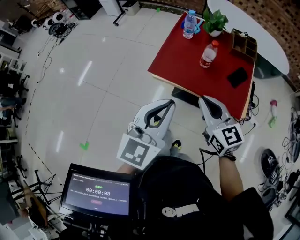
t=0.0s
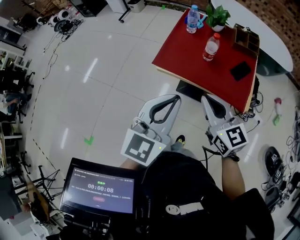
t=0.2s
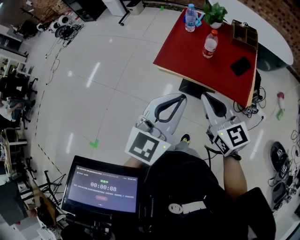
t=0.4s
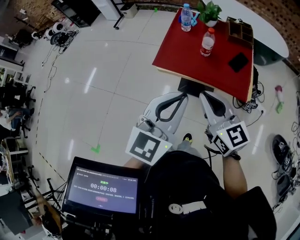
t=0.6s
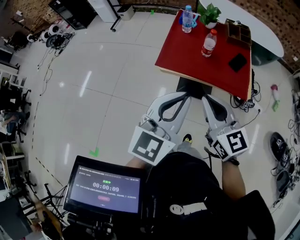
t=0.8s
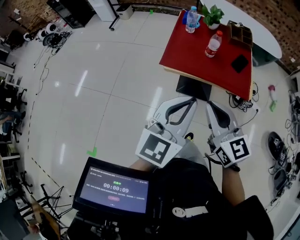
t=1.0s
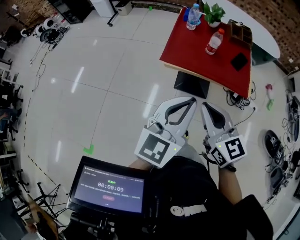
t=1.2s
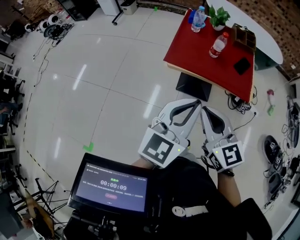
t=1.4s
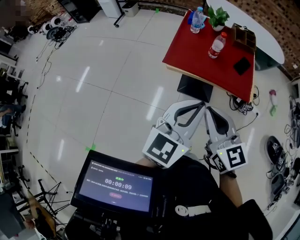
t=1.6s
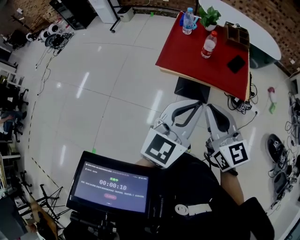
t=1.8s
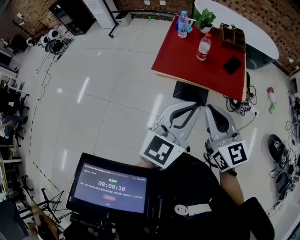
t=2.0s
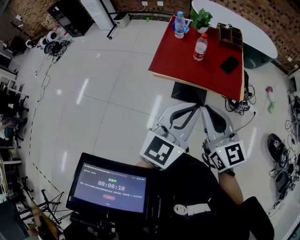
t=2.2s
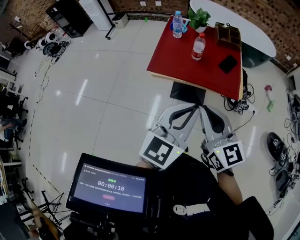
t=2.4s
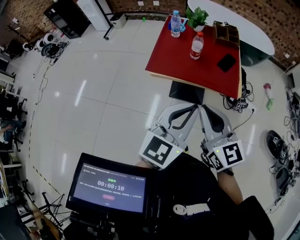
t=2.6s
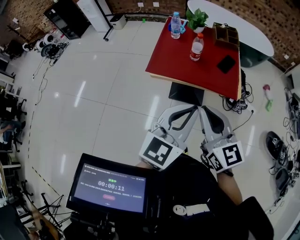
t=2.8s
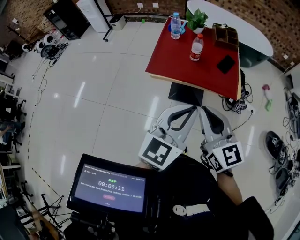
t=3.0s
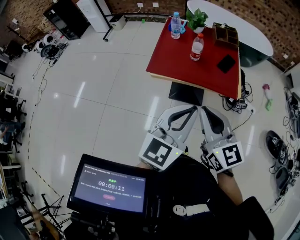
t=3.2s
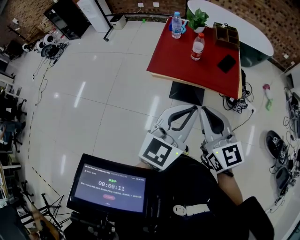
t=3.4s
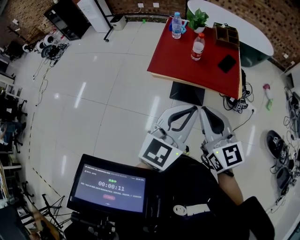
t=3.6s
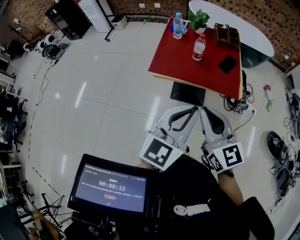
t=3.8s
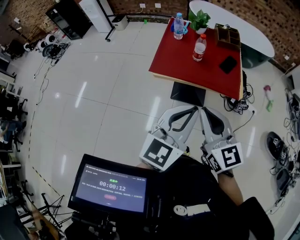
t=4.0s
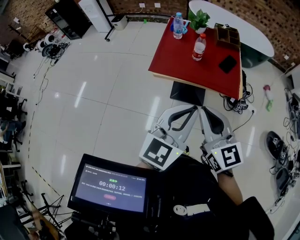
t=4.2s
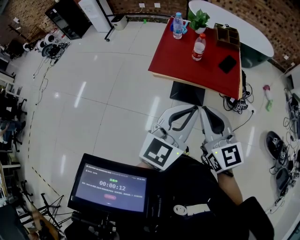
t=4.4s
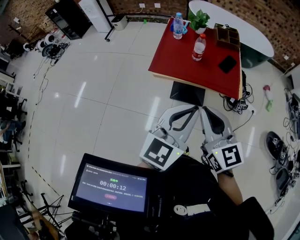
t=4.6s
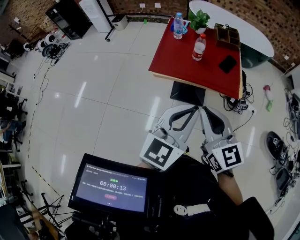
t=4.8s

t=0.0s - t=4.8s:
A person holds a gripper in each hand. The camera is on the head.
t=0.0s - t=1.6s: The left gripper goes roughly 10 cm backward. Meanwhile the right gripper shifts about 20 cm backward, to the left and upward.
t=1.6s - t=3.2s: Both grippers travel together to the right, some 5 cm.
t=3.2s - t=4.8s: Both grippers stay put.

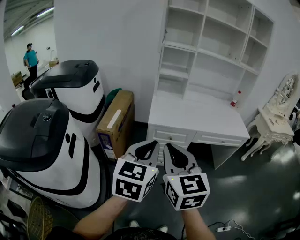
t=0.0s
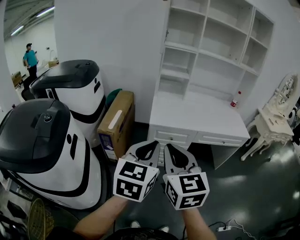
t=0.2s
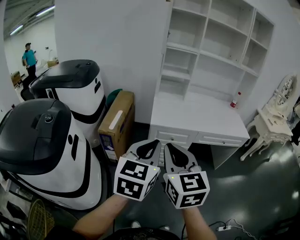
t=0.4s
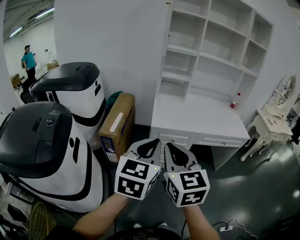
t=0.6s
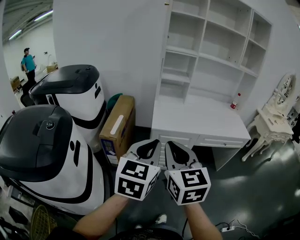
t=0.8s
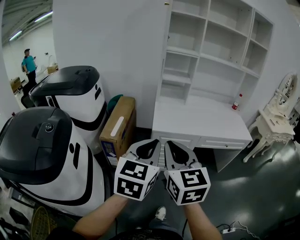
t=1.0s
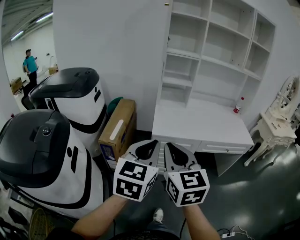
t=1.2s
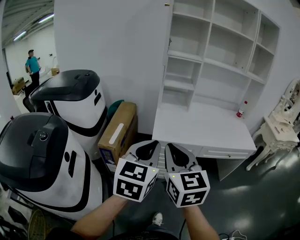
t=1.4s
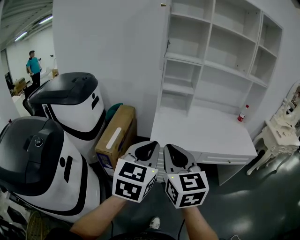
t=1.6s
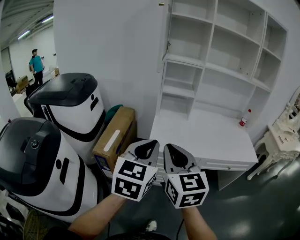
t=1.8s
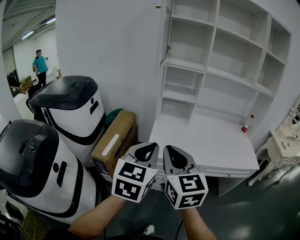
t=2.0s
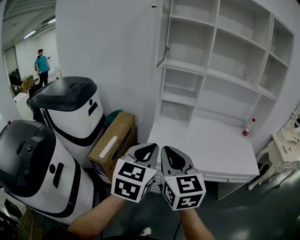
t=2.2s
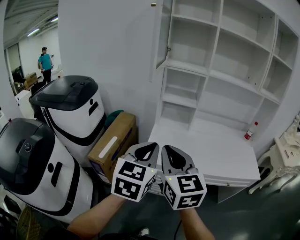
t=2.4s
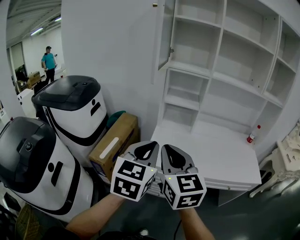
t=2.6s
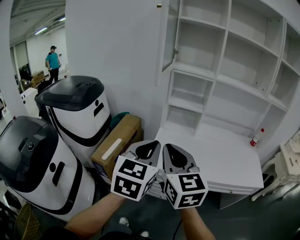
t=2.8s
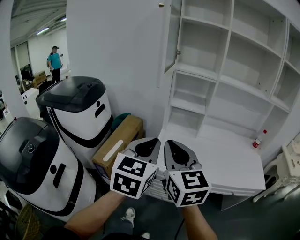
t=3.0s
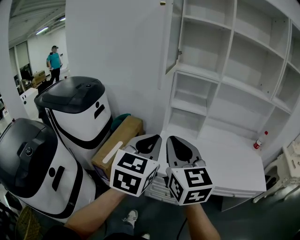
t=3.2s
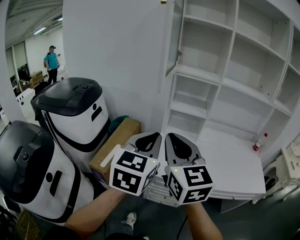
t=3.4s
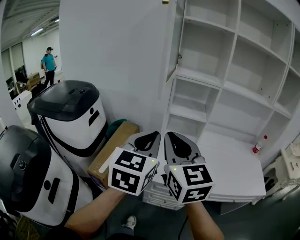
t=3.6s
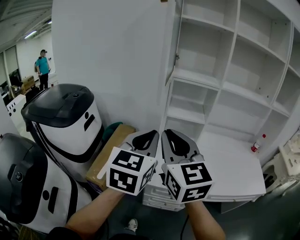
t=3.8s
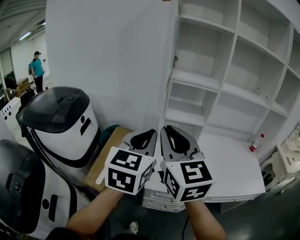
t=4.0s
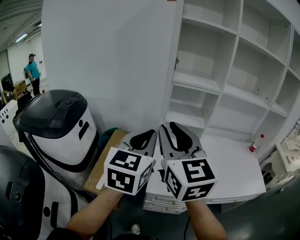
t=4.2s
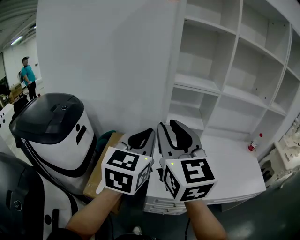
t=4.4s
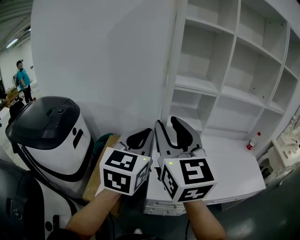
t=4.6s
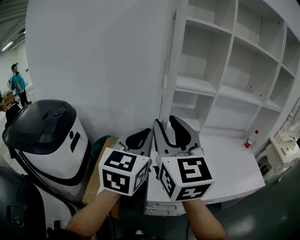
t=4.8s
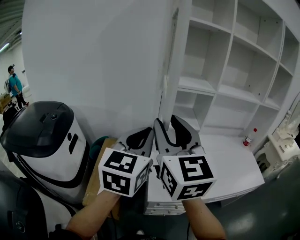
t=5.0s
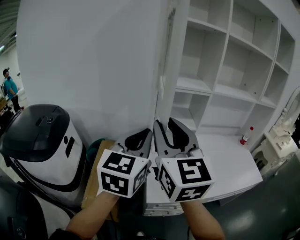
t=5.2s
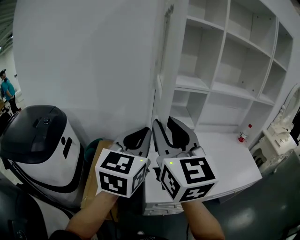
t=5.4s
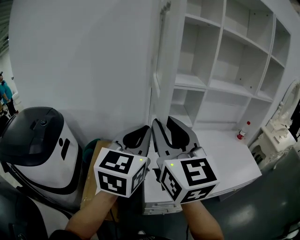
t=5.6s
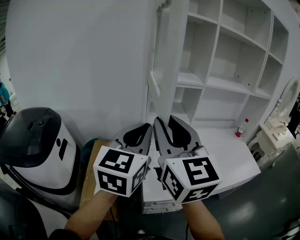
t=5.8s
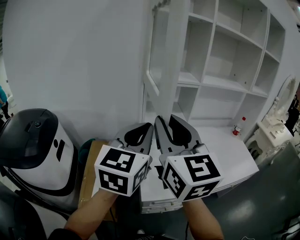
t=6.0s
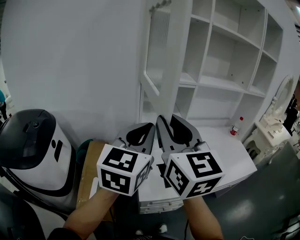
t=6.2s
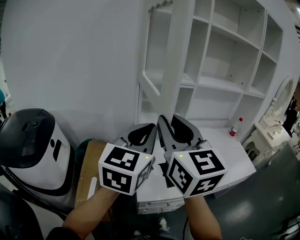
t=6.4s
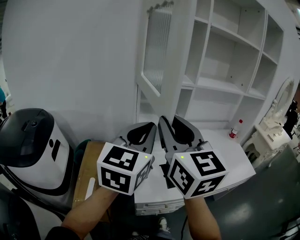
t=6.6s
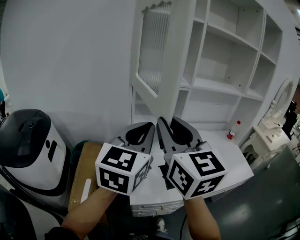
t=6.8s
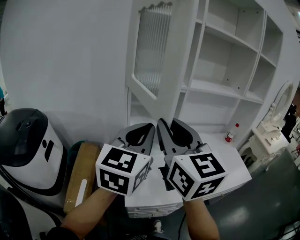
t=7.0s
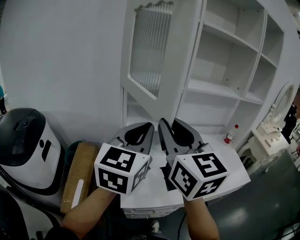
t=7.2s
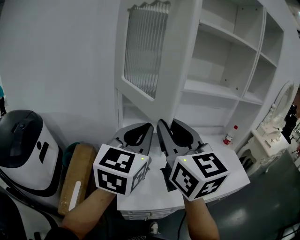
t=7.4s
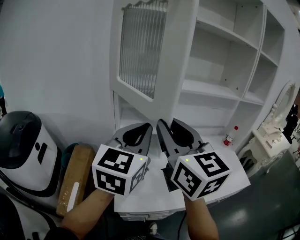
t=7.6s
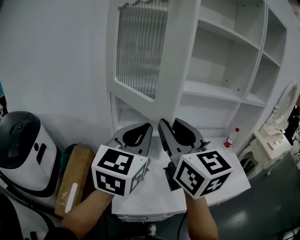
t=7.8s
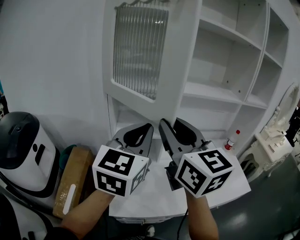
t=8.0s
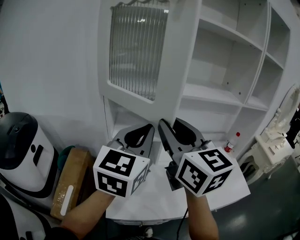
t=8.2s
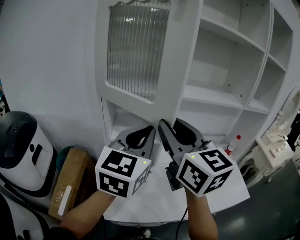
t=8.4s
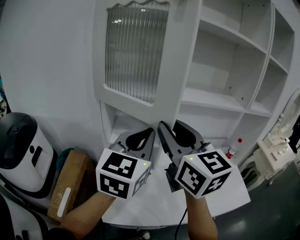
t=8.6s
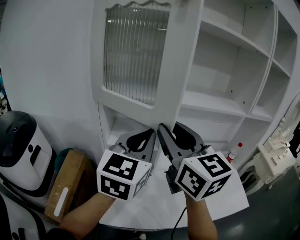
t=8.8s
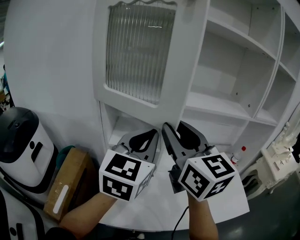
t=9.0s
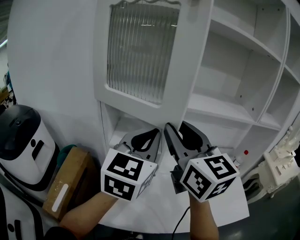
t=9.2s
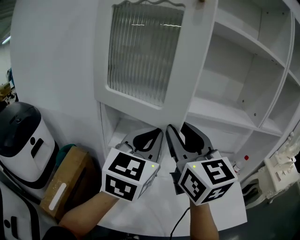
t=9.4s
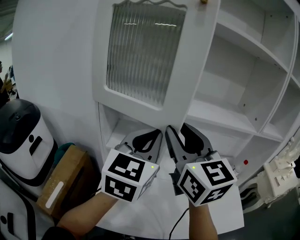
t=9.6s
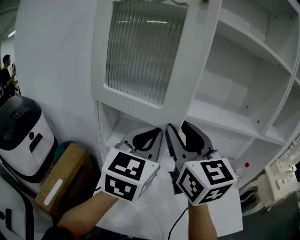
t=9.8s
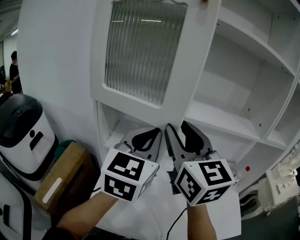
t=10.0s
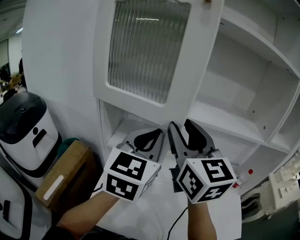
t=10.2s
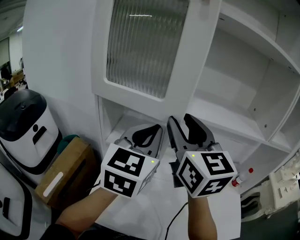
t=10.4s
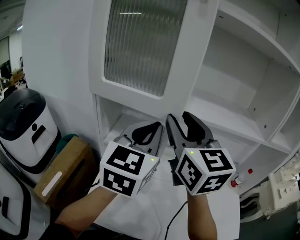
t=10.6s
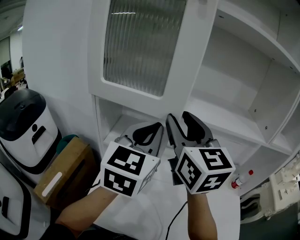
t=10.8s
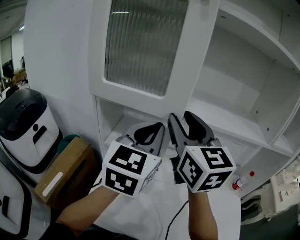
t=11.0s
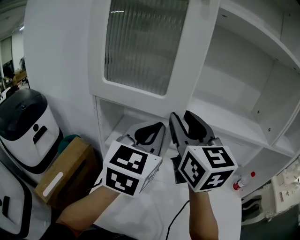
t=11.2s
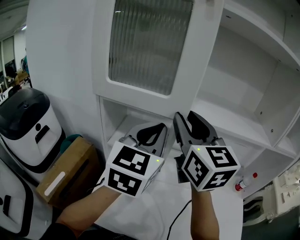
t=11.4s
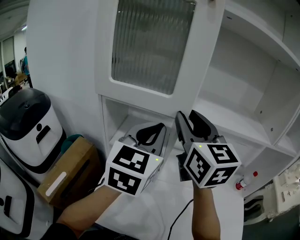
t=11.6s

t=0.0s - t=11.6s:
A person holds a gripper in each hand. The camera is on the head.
t=0.0s - t=1.4s: The grippers both shift forward by some 10 cm.
t=1.4s - t=2.8s: Both grippers travel together forward and to the right, roughly 20 cm.
t=2.8s - t=4.4s: The left gripper shifts roughly 20 cm forward. Meanwhile the right gripper shifts about 20 cm forward and upward.
t=4.4s - t=5.8s: The left gripper moves about 5 cm.
t=5.8s - t=7.2s: The two grippers go roughly 10 cm to the right.
t=7.2s - t=8.8s: The two grippers go about 15 cm forward and to the right.
t=8.8s - t=10.2s: Both grippers travel together forward, about 10 cm.
t=10.2s - t=11.6s: The grippers stay close to where they were, moving slightly.

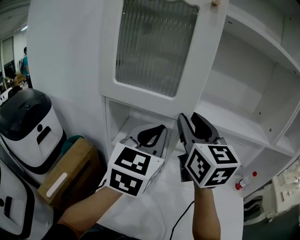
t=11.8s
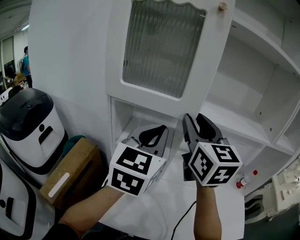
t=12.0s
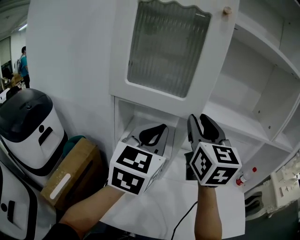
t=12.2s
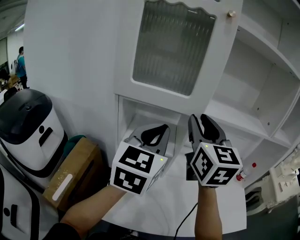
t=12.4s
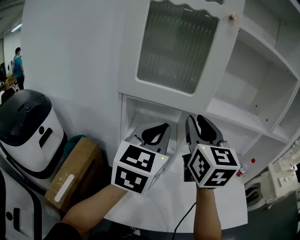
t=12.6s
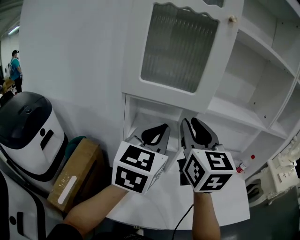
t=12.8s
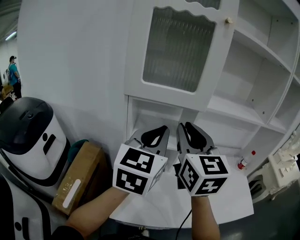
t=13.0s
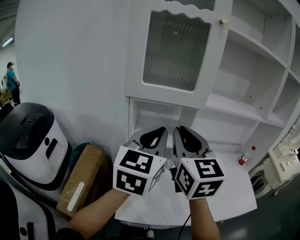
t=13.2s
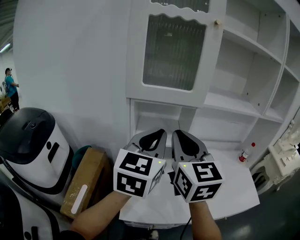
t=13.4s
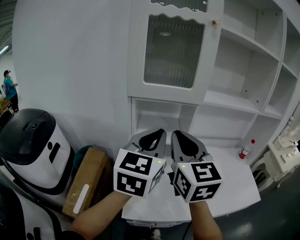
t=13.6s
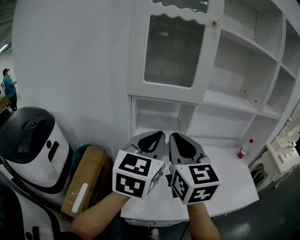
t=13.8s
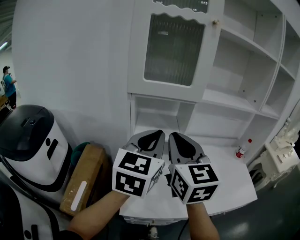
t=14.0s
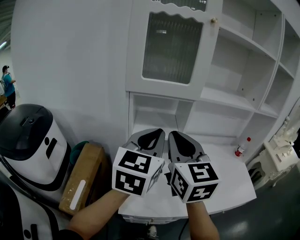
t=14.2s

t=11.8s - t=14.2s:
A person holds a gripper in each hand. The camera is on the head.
t=11.8s - t=13.0s: The left gripper travels to the left and backward by some 10 cm; the right gripper moves backward and to the left, approximately 15 cm.
t=13.0s - t=14.2s: The grippers both shift backward by some 5 cm.

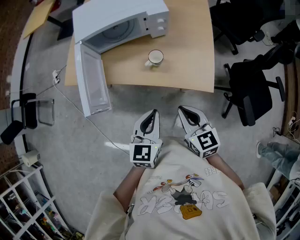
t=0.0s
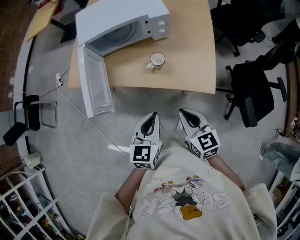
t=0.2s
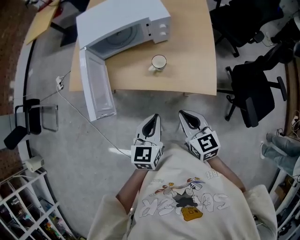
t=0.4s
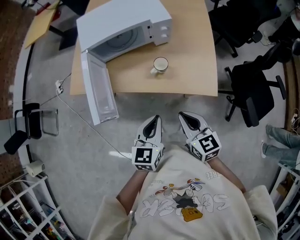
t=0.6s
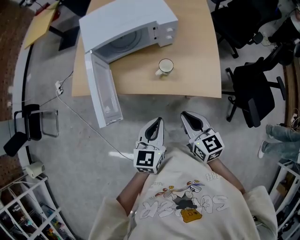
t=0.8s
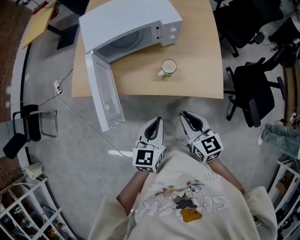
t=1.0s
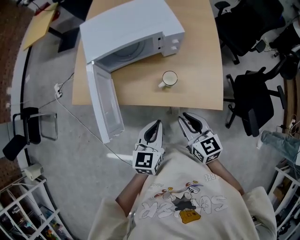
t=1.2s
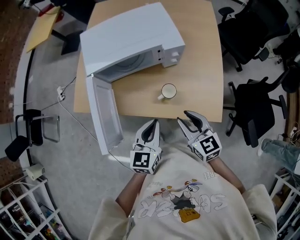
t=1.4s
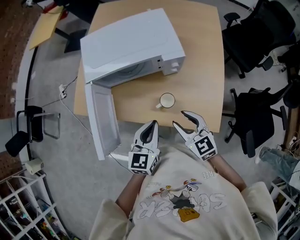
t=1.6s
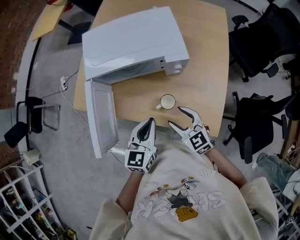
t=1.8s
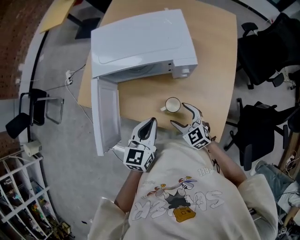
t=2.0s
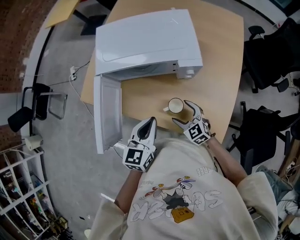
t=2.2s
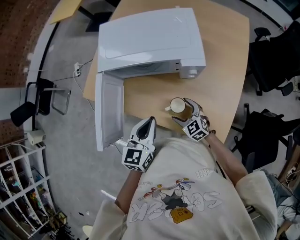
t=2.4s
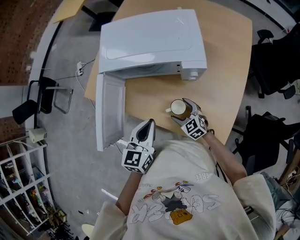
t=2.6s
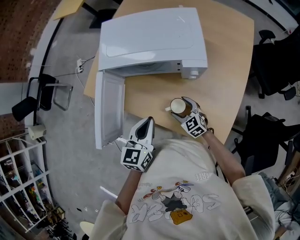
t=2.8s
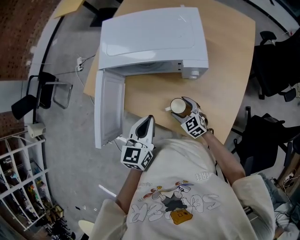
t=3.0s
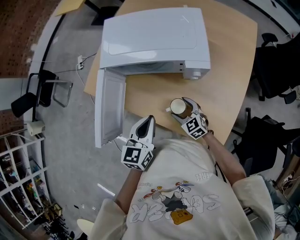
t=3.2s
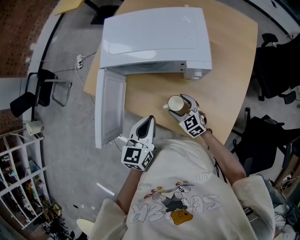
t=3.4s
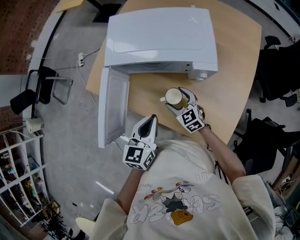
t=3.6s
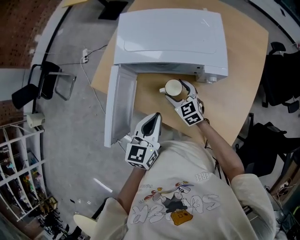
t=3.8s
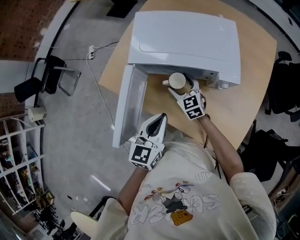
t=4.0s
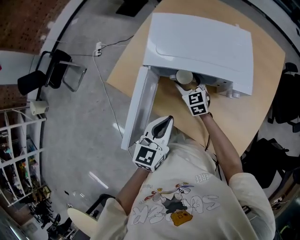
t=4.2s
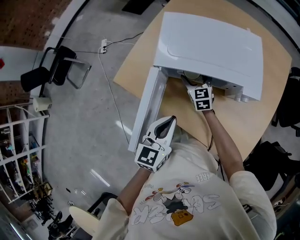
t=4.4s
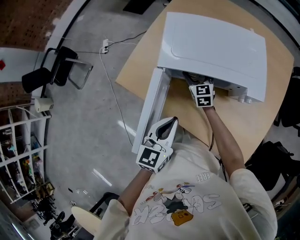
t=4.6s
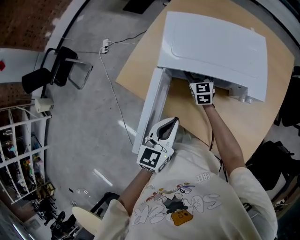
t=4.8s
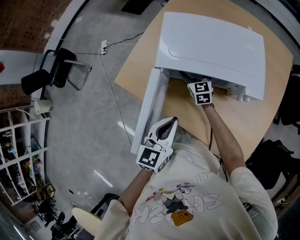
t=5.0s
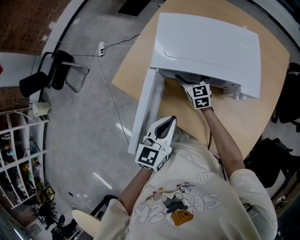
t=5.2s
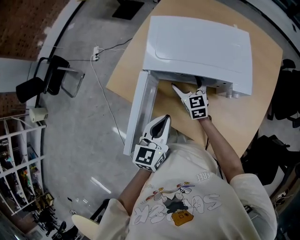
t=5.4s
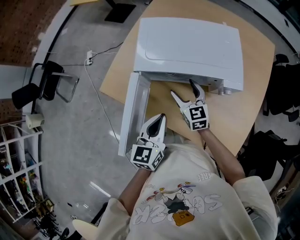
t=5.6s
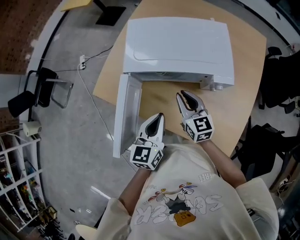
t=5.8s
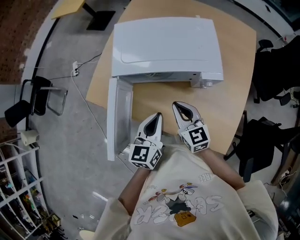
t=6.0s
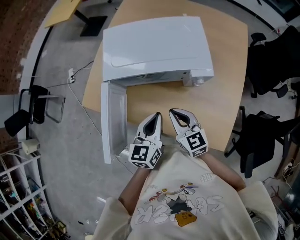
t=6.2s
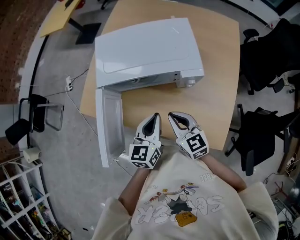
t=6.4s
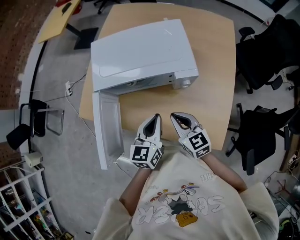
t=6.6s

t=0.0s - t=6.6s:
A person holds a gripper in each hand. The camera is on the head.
t=0.0s - t=1.6s: The two grippers go about 20 cm forward. The right gripper opens its fingers.
t=1.6s - t=3.2s: The left gripper ends up about 5 cm from where it was. The right gripper is displaced downward and forward by approximately 20 cm, swivels about 20 degrees, and opens its fingers.
t=3.2s - t=5.0s: The left gripper goes approximately 10 cm to the left and forward. The right gripper goes approximately 30 cm forward and to the left, and turns by some 20 degrees.
t=5.0s - t=6.6s: The left gripper heads to the right, covering some 15 cm. Meanwhile the right gripper moves backward and to the right, roughly 30 cm, and closes.
